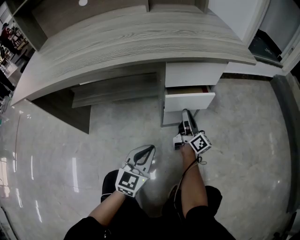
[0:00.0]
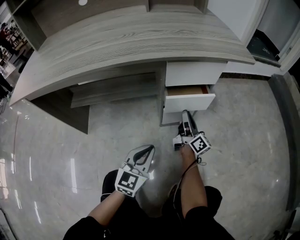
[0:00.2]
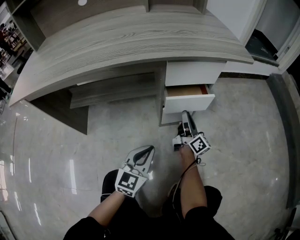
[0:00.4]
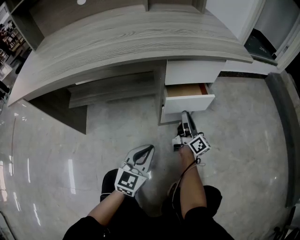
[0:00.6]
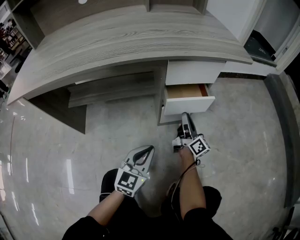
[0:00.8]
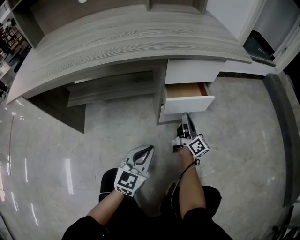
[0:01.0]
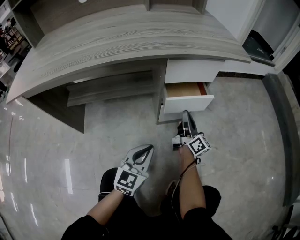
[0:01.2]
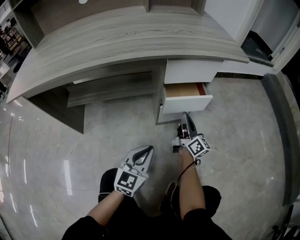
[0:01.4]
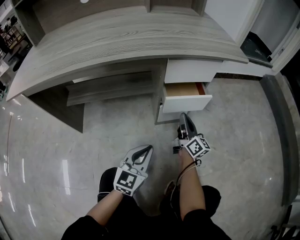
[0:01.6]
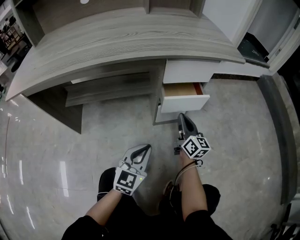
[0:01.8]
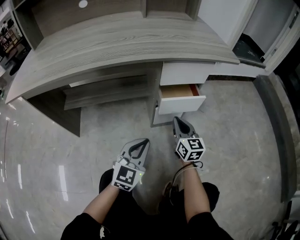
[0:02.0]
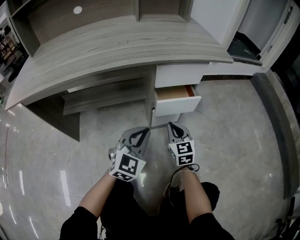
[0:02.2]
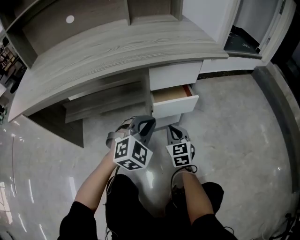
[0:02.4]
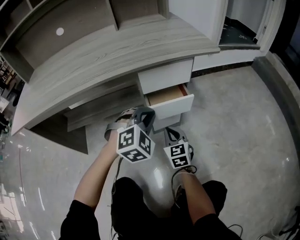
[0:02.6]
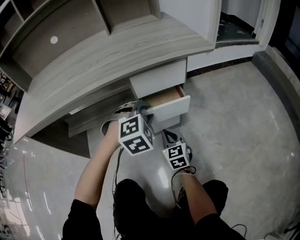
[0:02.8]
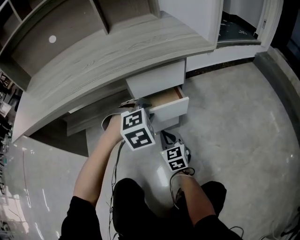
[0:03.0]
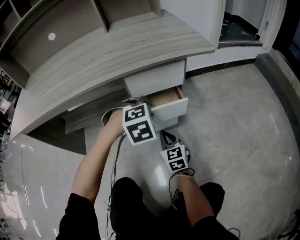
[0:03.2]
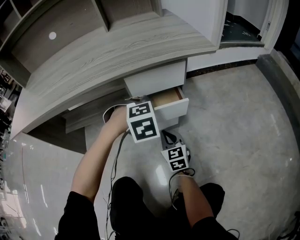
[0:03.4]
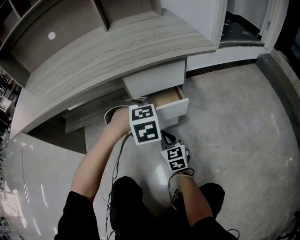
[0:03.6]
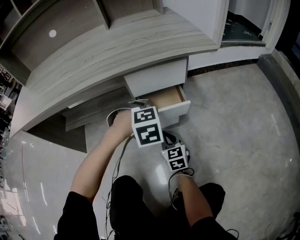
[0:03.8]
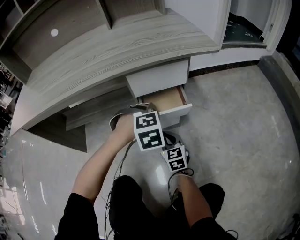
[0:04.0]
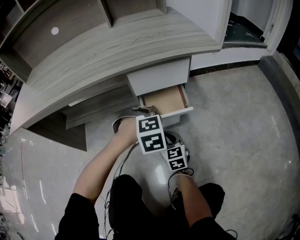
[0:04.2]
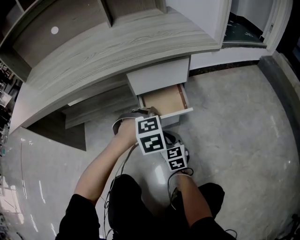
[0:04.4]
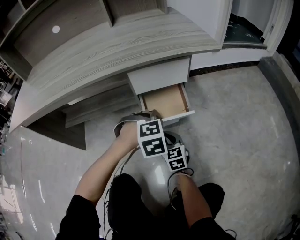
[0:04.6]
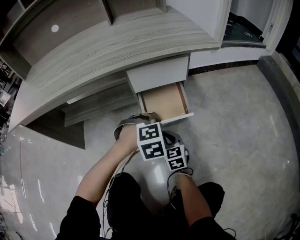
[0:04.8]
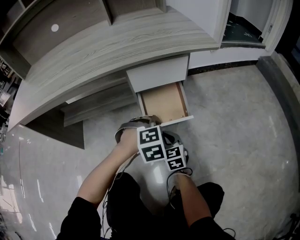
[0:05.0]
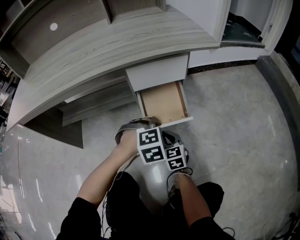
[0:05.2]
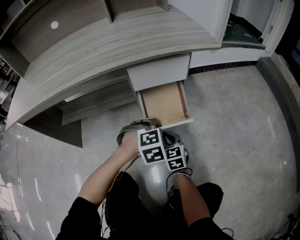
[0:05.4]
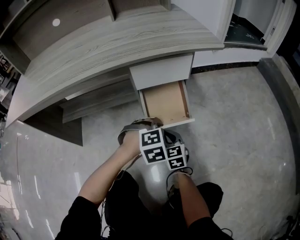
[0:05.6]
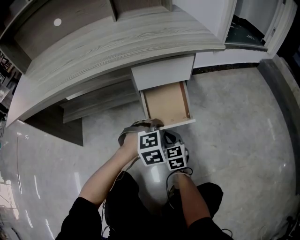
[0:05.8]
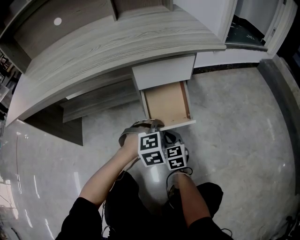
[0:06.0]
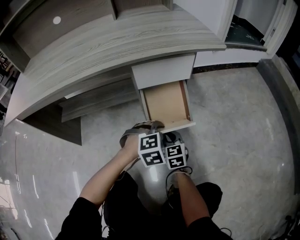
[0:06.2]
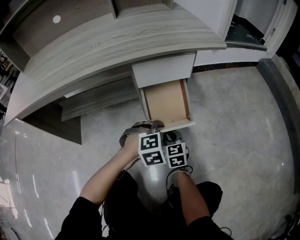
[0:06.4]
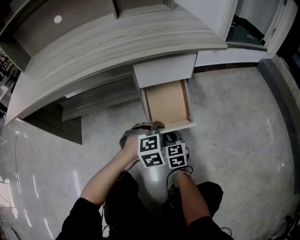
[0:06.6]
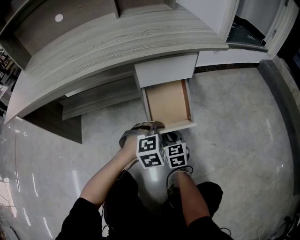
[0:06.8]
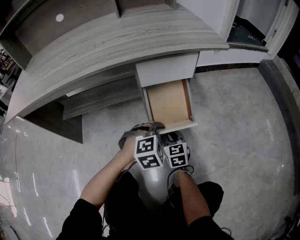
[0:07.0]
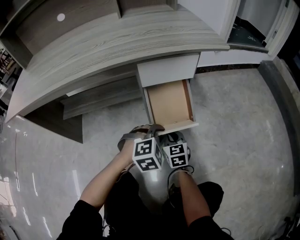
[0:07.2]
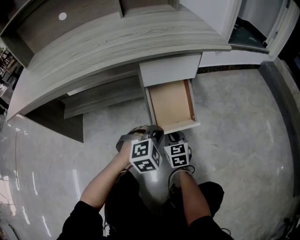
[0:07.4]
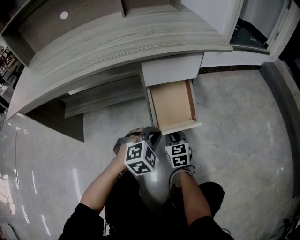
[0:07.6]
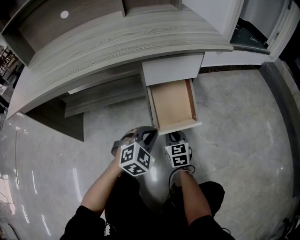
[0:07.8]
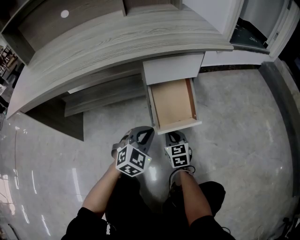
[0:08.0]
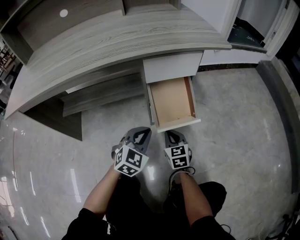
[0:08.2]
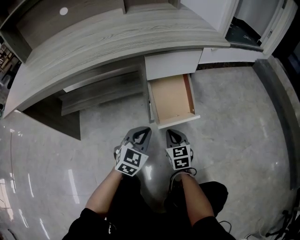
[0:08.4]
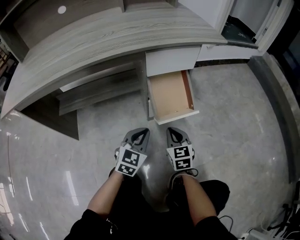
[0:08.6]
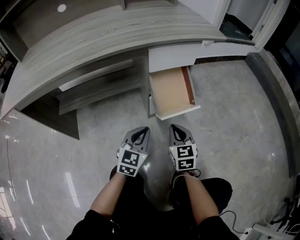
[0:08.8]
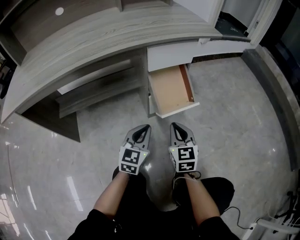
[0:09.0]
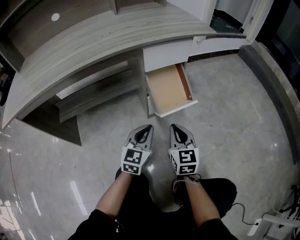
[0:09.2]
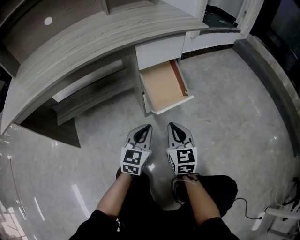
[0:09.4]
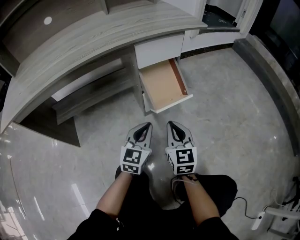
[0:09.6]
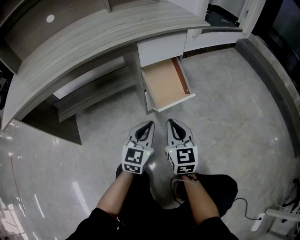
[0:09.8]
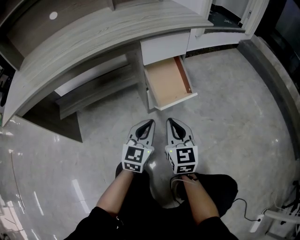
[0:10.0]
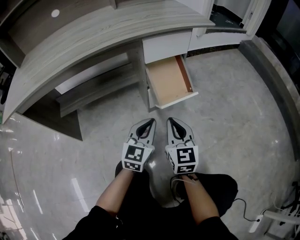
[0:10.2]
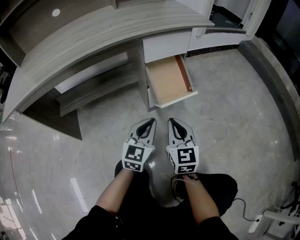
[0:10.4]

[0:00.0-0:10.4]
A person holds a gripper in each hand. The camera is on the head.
0:00.0 to 0:01.4: The grippers make only small movements.
0:01.4 to 0:03.0: The left gripper shifts approximately 20 cm forward and to the right, points its fingers approximately 40 degrees further downward, and opens, while the right gripper shifts by approximately 5 cm, and points its fingers roughly 30 degrees further downward.
0:03.0 to 0:04.4: The left gripper heads downward, covering about 5 cm.
0:04.4 to 0:06.0: The left gripper shifts by about 5 cm.
0:06.0 to 0:07.4: The grippers make only small movements.
0:07.4 to 0:09.0: The left gripper is displaced to the left and backward by some 10 cm, and points its fingers about 30 degrees further upward; the right gripper goes approximately 15 cm upward and backward.
0:09.0 to 0:10.4: The right gripper shifts by about 5 cm.

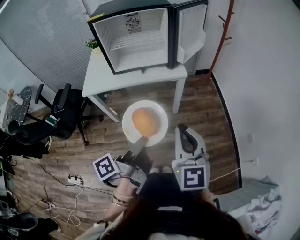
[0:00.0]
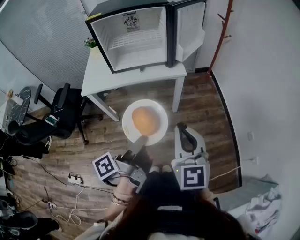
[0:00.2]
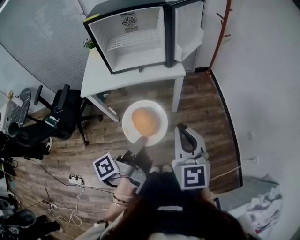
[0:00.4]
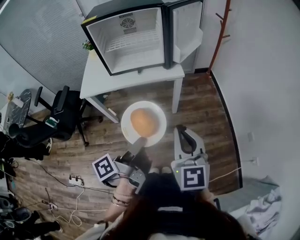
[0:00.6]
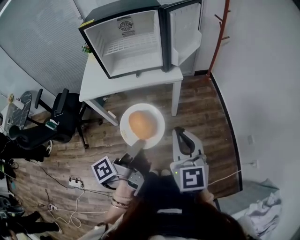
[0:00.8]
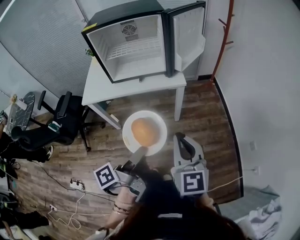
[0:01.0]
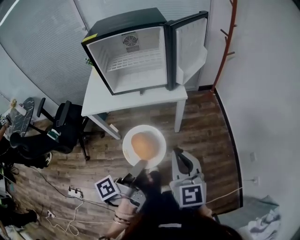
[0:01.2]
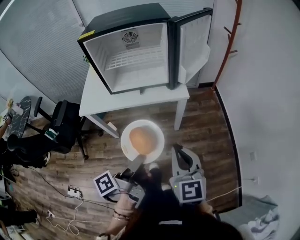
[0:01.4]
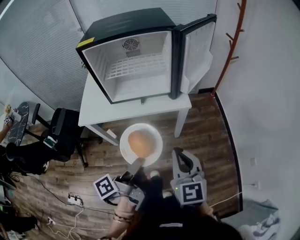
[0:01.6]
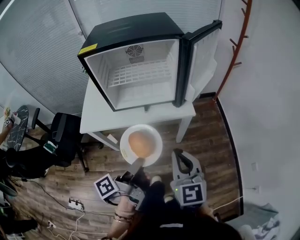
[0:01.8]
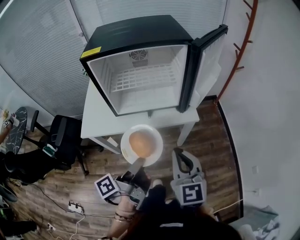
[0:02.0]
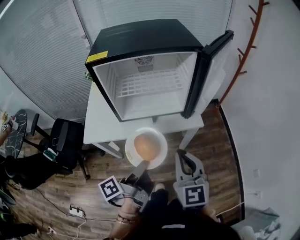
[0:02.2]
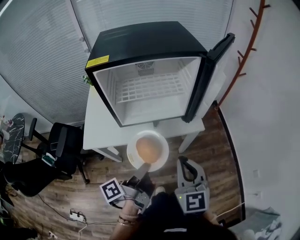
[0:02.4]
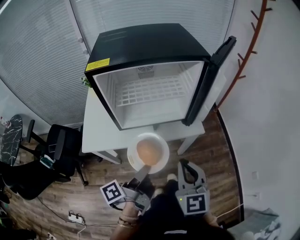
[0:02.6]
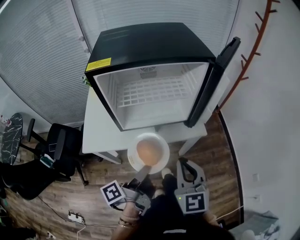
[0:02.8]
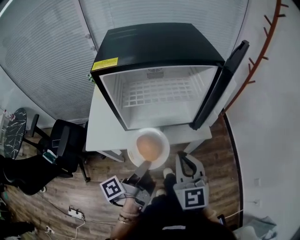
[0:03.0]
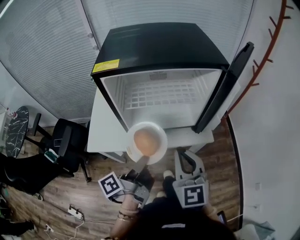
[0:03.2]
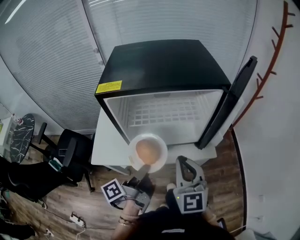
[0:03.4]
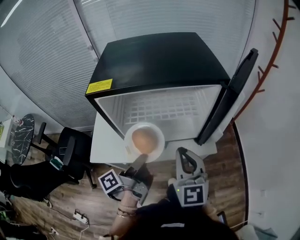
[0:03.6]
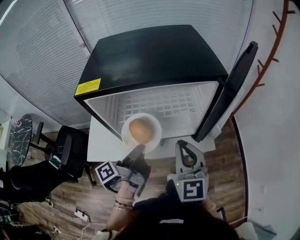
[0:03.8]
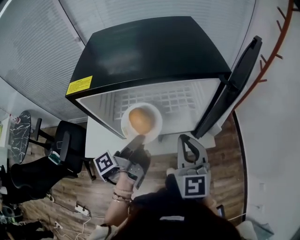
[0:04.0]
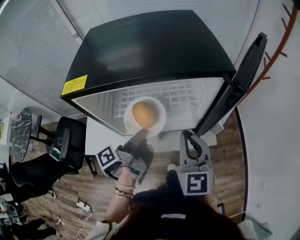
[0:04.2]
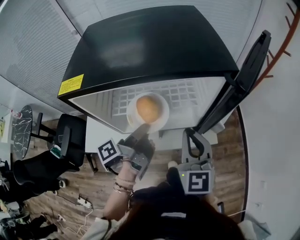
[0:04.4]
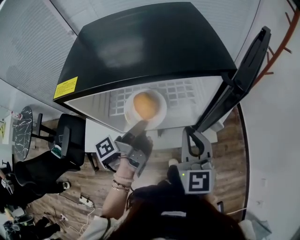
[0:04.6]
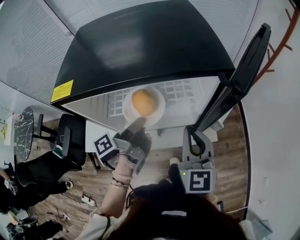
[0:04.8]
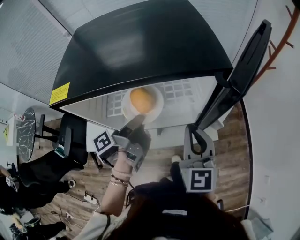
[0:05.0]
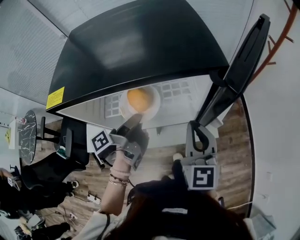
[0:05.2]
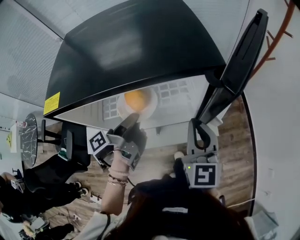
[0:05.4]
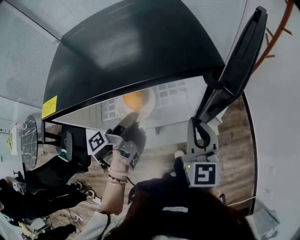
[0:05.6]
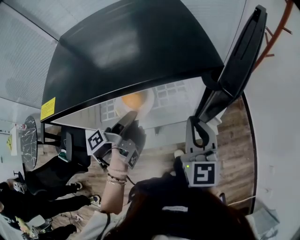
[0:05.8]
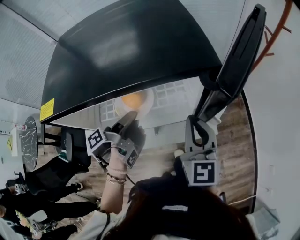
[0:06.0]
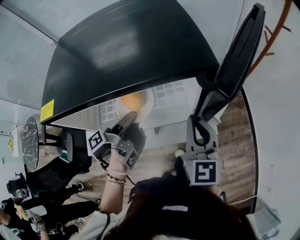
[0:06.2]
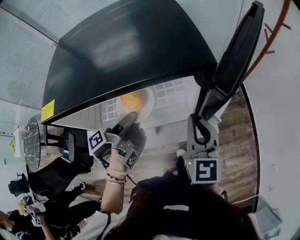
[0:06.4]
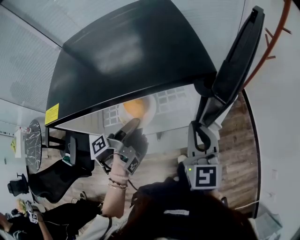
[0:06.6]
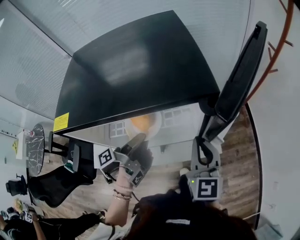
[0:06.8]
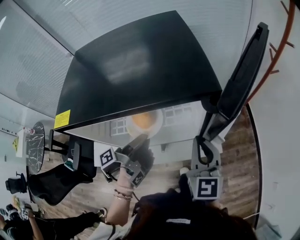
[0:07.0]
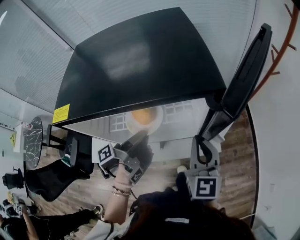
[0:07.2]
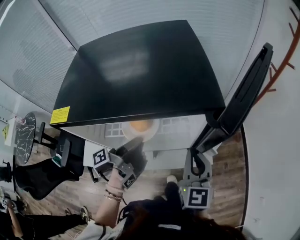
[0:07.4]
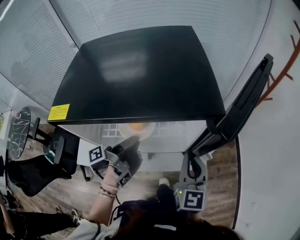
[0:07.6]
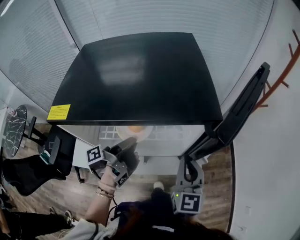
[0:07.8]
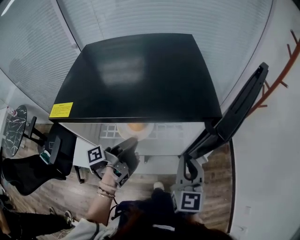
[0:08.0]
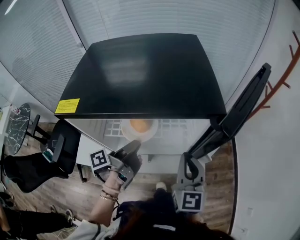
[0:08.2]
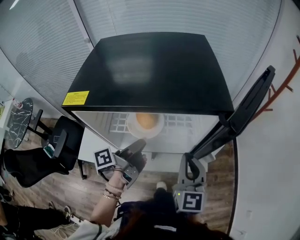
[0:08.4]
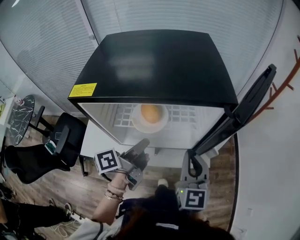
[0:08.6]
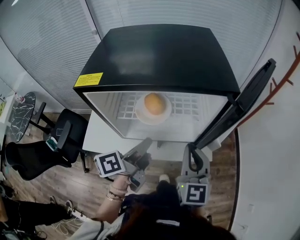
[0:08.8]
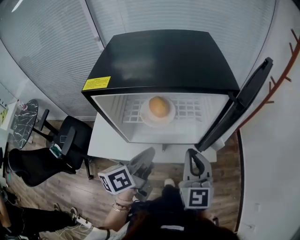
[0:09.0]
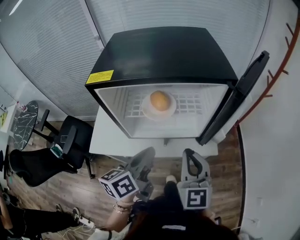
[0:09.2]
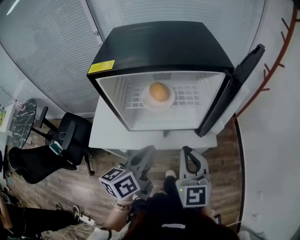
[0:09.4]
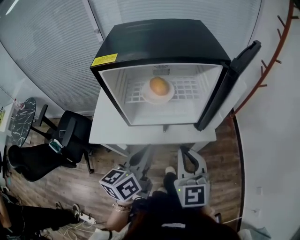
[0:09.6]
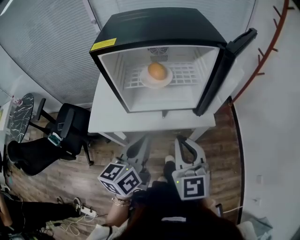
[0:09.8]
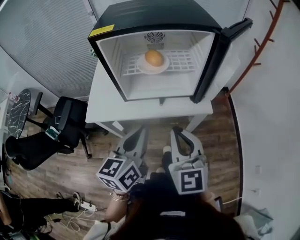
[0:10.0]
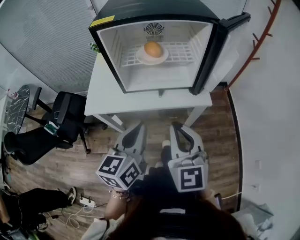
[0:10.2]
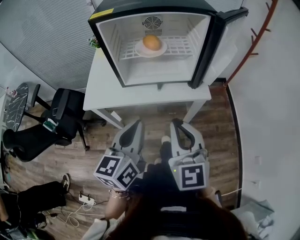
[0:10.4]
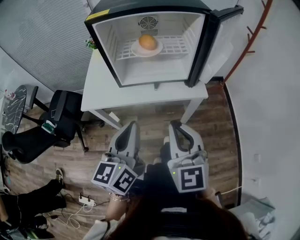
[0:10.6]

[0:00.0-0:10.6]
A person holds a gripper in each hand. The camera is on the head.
0:00.0 to 0:01.6: The right gripper ends up about 15 cm from where it was.
0:01.6 to 0:03.0: The right gripper ends up some 20 cm from where it was.
0:03.0 to 0:04.6: The right gripper changes place by some 15 cm.
0:04.6 to 0:06.0: The right gripper shifts by about 5 cm.
0:07.6 to 0:09.0: The right gripper shifts by about 10 cm.
0:09.0 to 0:10.6: The right gripper changes place by roughly 20 cm.

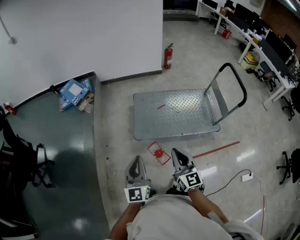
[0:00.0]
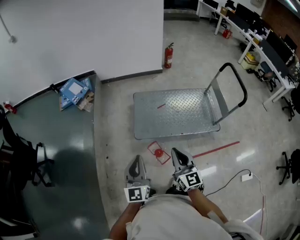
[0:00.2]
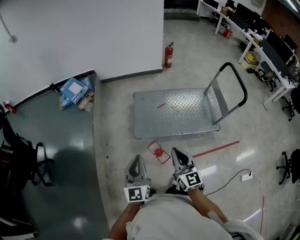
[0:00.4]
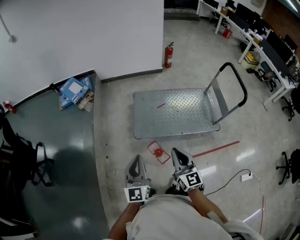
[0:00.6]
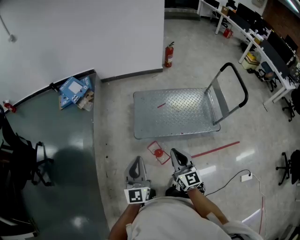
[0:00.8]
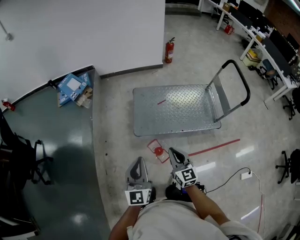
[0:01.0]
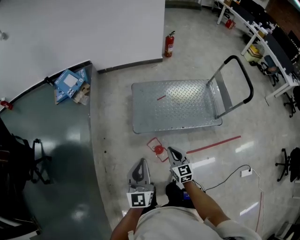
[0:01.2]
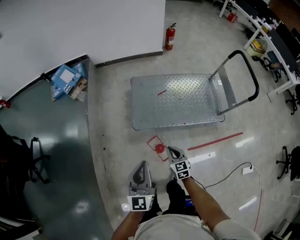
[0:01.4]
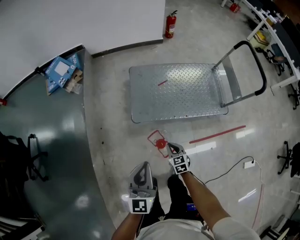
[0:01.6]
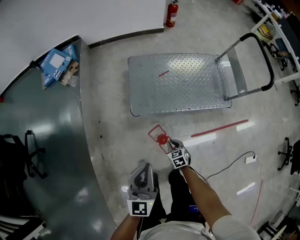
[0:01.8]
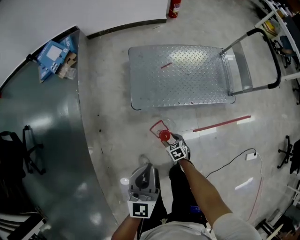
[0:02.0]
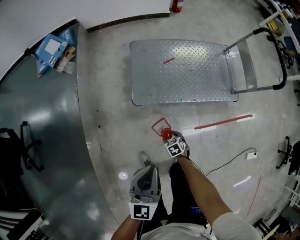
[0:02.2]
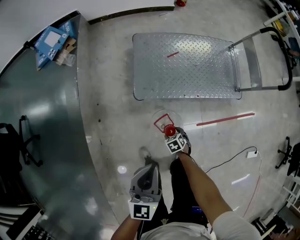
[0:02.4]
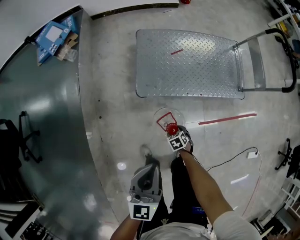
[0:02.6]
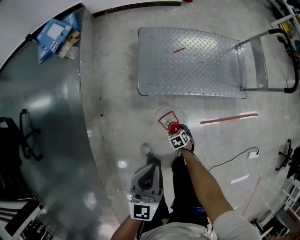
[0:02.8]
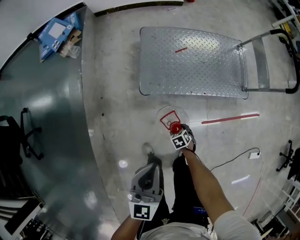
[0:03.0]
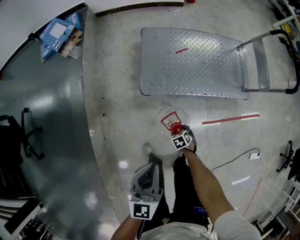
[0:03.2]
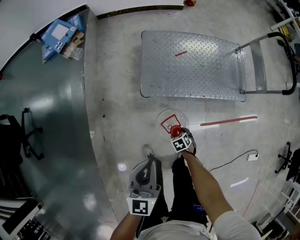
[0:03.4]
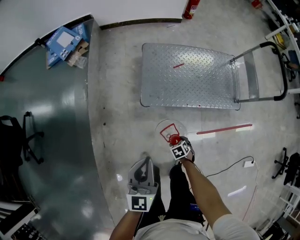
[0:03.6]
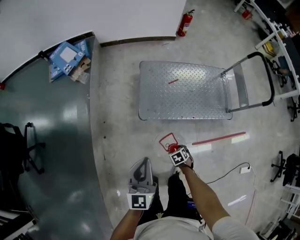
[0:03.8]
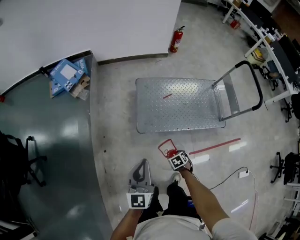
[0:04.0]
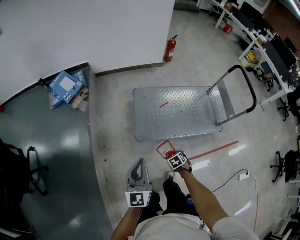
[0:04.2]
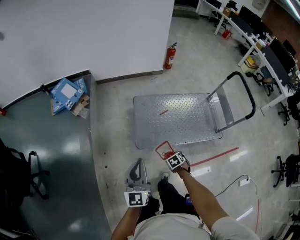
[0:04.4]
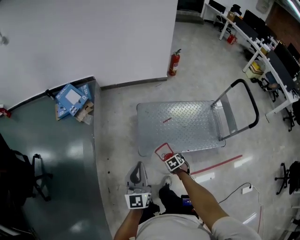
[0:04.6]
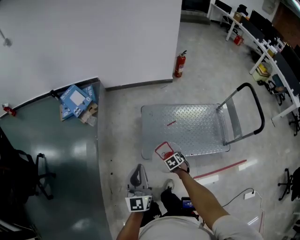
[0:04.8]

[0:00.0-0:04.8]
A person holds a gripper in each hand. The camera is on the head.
0:00.0 to 0:01.6: The right gripper shifts approximately 35 cm downward, and angles its fingers downward, by roughly 40 degrees; the left gripper goes approximately 10 cm downward.
0:01.6 to 0:03.2: The right gripper shifts about 25 cm downward, angles its fingers downward, by approximately 40 degrees, and opens its fingers, while the left gripper goes roughly 10 cm downward.
0:03.2 to 0:04.8: Both grippers move upward, some 20 cm.
